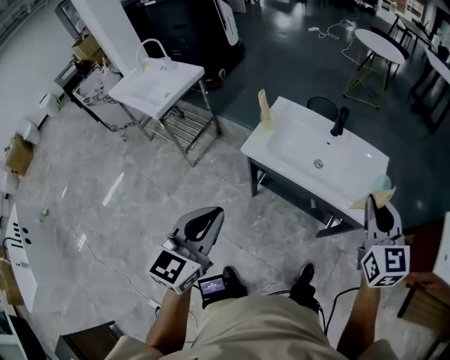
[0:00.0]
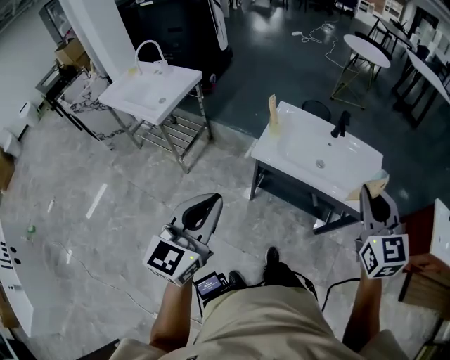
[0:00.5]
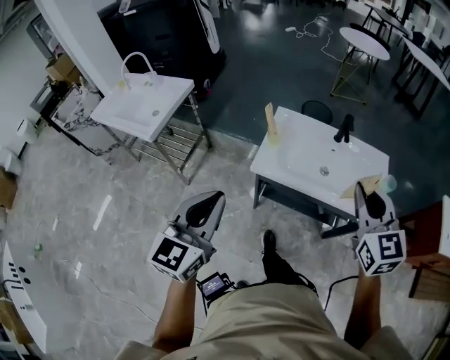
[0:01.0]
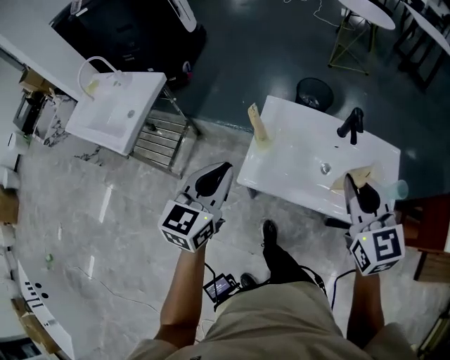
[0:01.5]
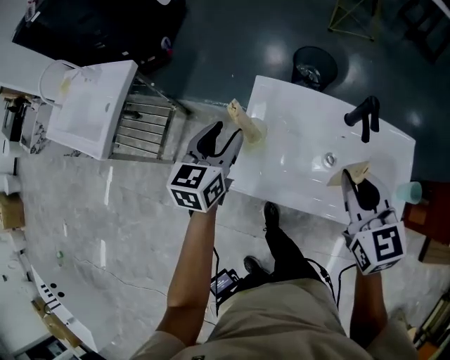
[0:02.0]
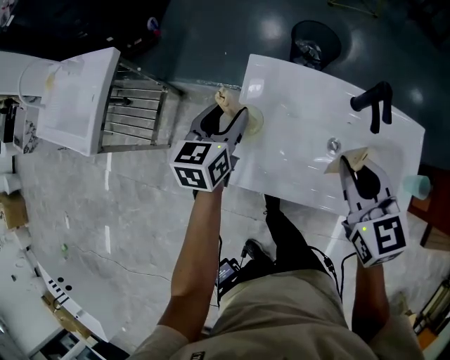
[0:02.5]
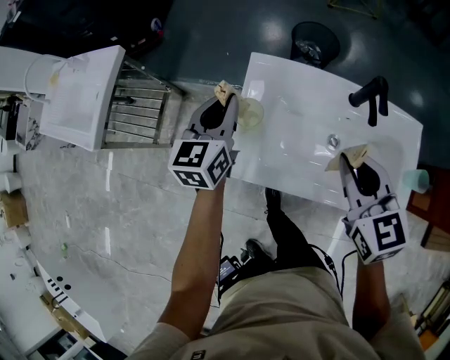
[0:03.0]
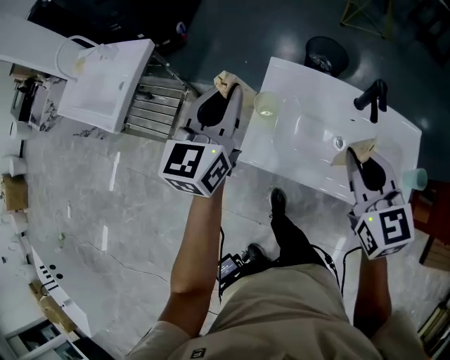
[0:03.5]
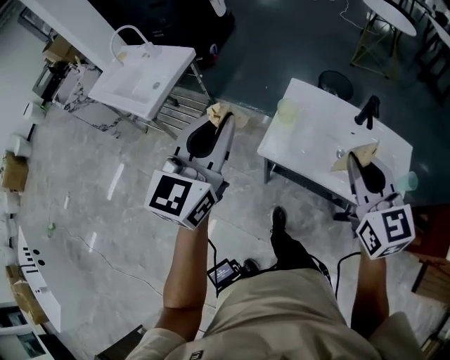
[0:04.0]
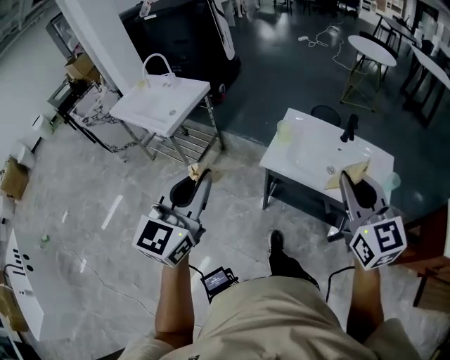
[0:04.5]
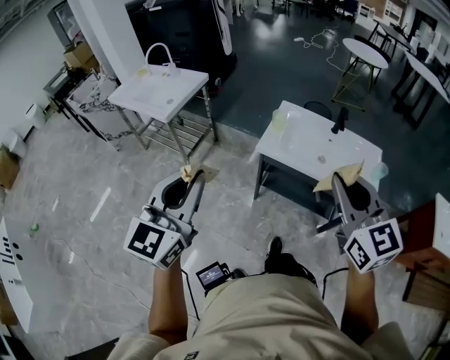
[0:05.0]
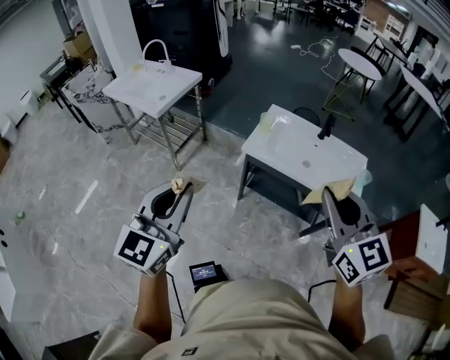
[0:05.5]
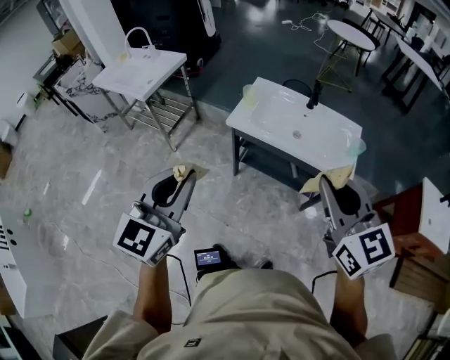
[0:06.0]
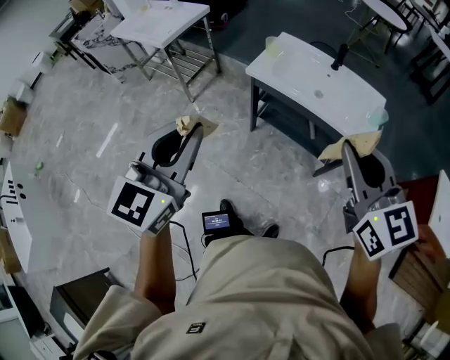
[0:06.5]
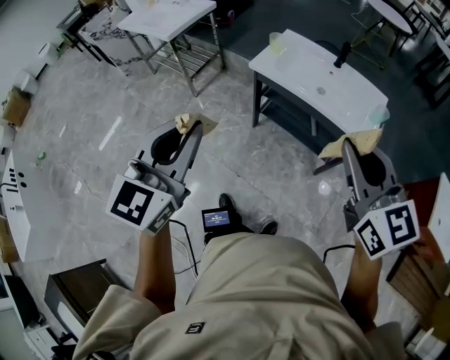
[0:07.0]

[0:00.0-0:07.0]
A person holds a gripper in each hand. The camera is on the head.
0:00.0 to 0:02.0: The left gripper moves forward and downward, roughly 60 cm, and opens its fingers, while the right gripper heads forward, downward and to the left, covering roughly 40 cm.
0:02.0 to 0:03.5: The left gripper travels upward by some 10 cm, and closes its fingers.
0:03.5 to 0:05.0: The two grippers travel together, backward, about 50 cm. The right gripper goes some 25 cm upward.
0:05.0 to 0:07.0: Both grippers move backward and to the right, approximately 20 cm.

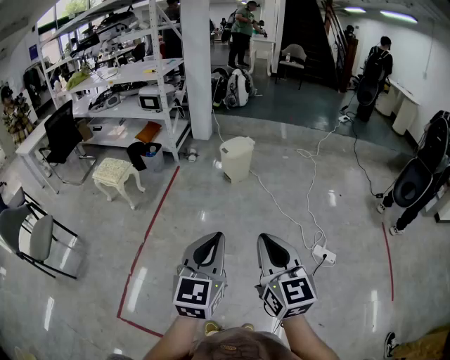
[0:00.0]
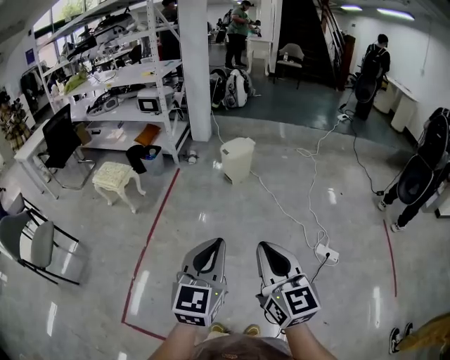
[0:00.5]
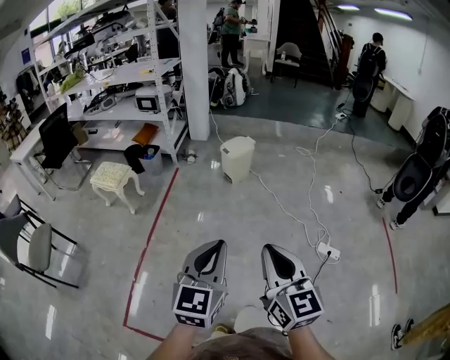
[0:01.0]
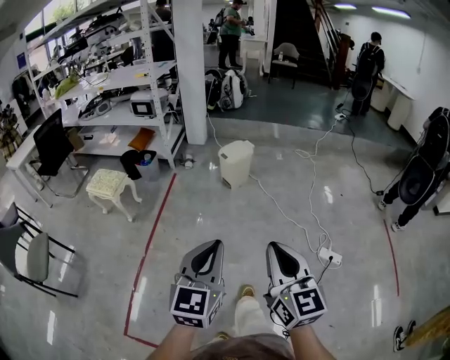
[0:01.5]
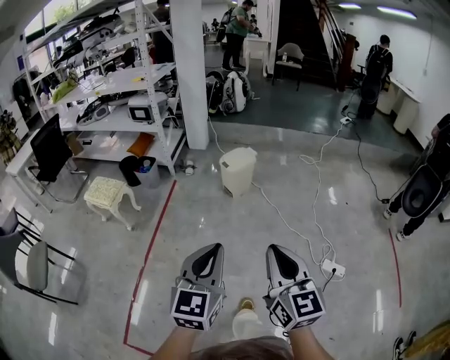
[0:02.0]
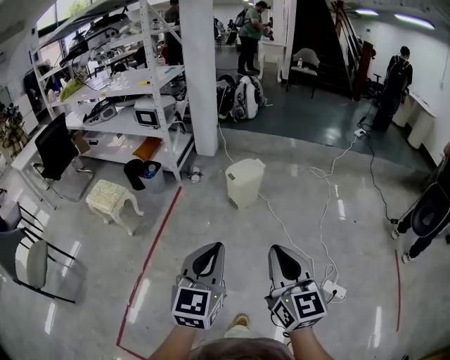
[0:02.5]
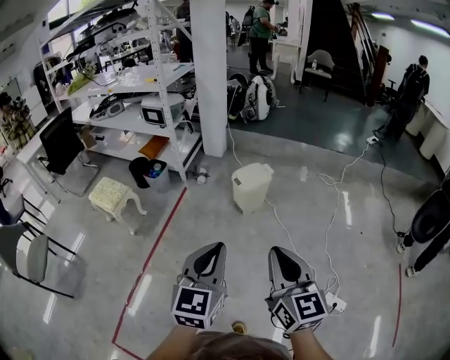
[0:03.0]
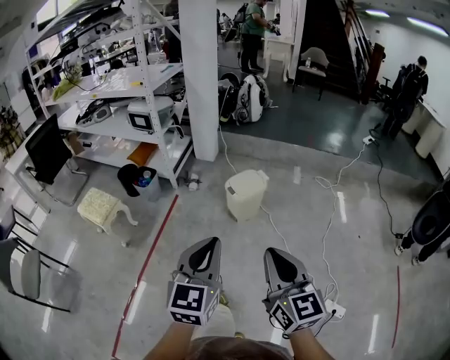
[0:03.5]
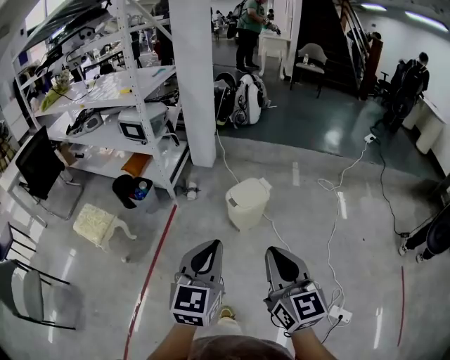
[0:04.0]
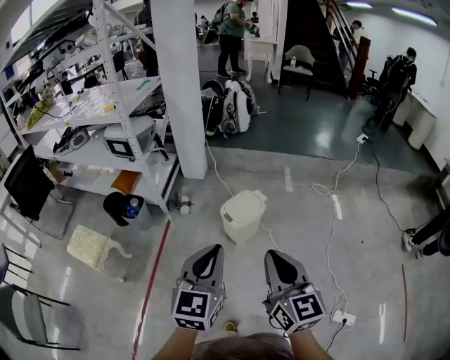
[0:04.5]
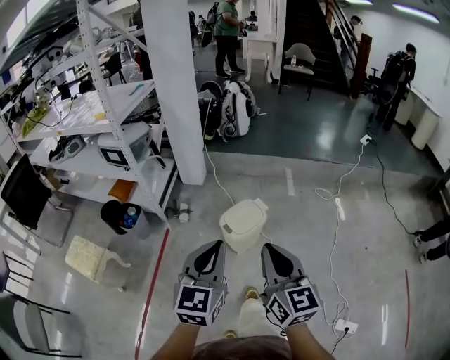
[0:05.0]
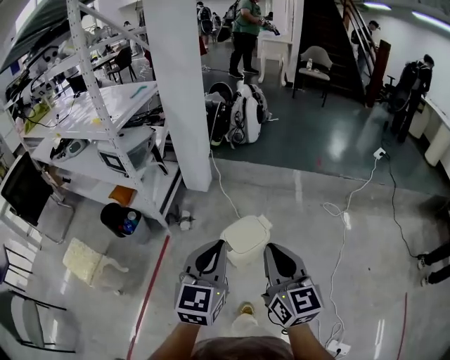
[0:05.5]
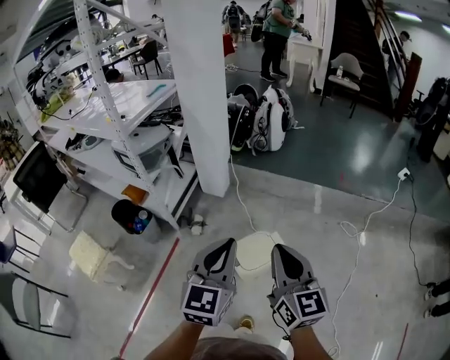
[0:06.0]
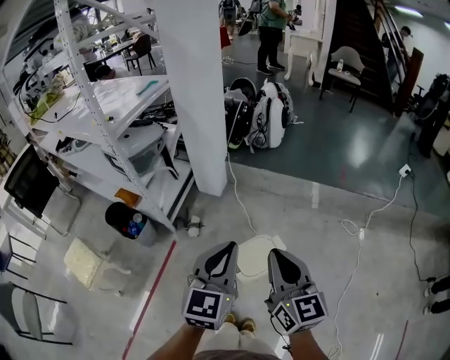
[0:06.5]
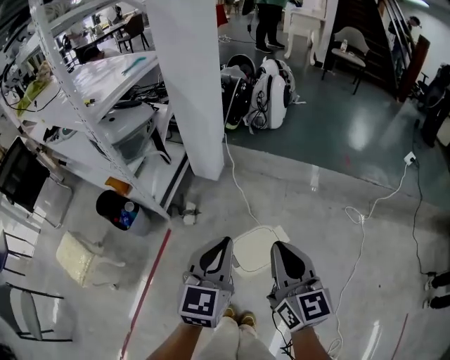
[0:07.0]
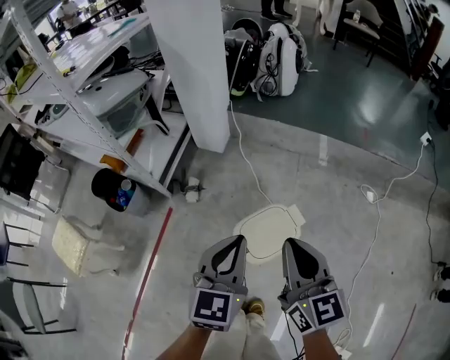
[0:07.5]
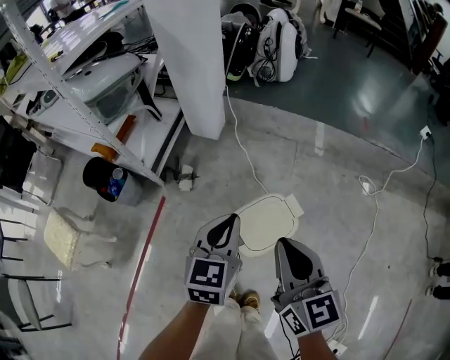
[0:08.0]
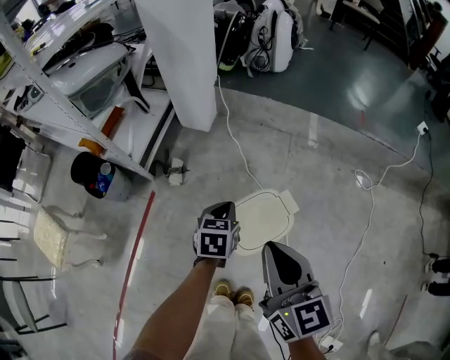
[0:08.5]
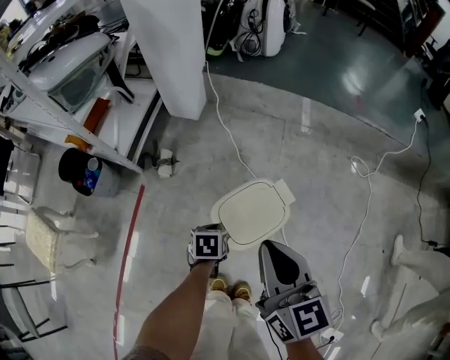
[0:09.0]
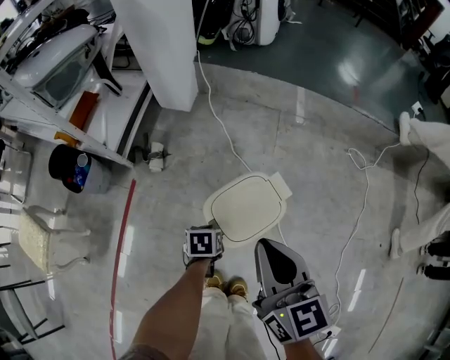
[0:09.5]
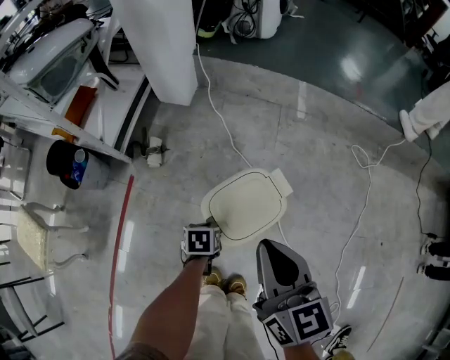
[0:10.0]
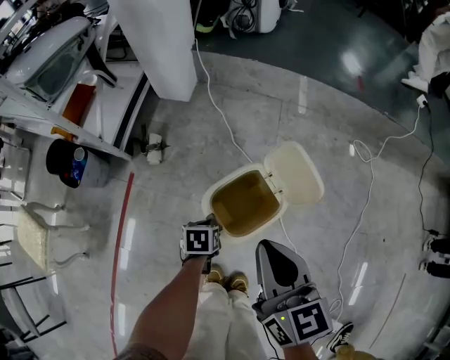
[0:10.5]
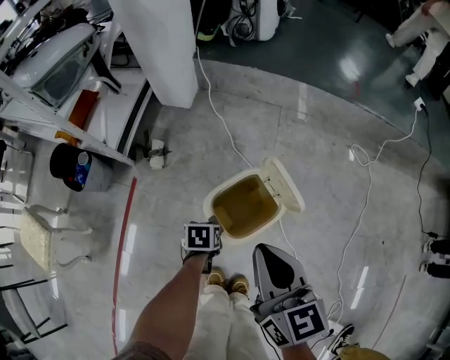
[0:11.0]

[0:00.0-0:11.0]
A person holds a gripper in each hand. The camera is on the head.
0:00.0 to 0:02.0: The grippers both shift forward by some 15 cm.
0:02.0 to 0:03.5: The grippers both shift forward by about 30 cm.
0:03.5 to 0:05.5: The two grippers go approximately 40 cm forward.
0:05.5 to 0:07.5: The right gripper heads forward and downward, covering about 30 cm. Meanwhile the left gripper travels downward and forward by approximately 30 cm.
0:07.5 to 0:09.0: The left gripper is displaced downward by some 35 cm, and tips its fingers downward by approximately 50 degrees. The right gripper heads downward, covering roughly 10 cm.
0:09.0 to 0:11.0: The left gripper shifts approximately 5 cm downward.

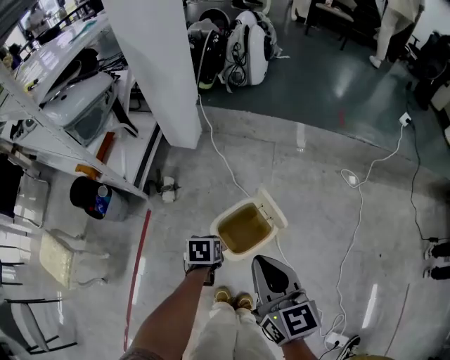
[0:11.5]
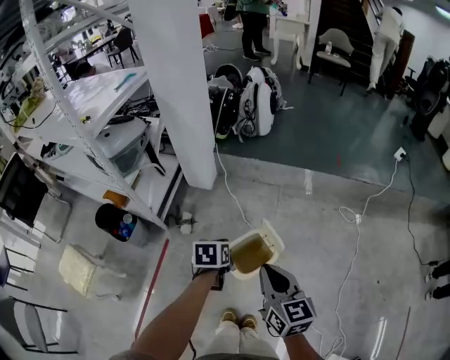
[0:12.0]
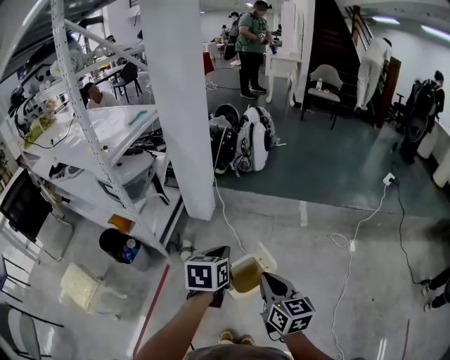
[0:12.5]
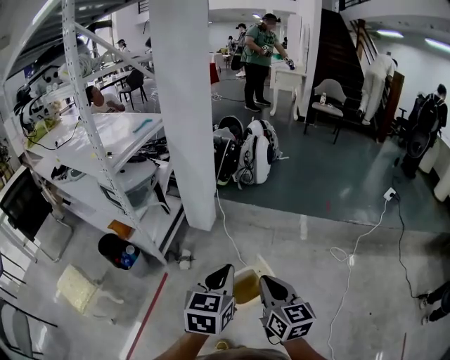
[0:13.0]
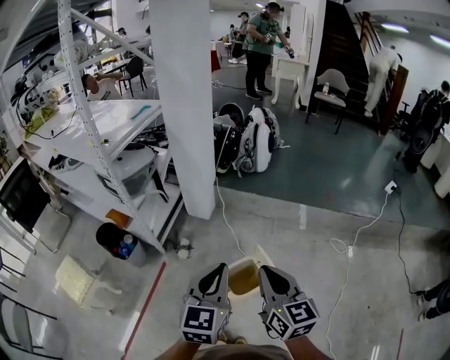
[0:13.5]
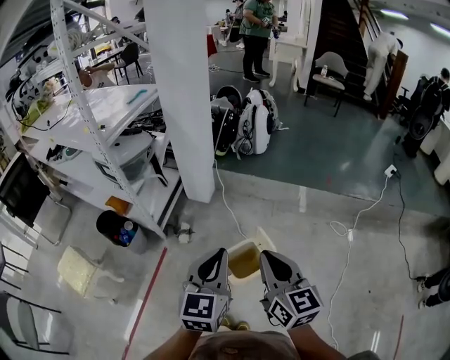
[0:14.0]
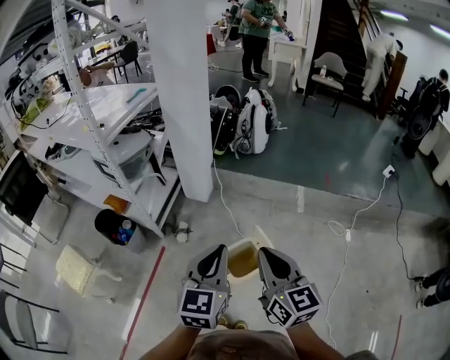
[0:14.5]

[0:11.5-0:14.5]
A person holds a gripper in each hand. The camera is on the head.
0:11.5 to 0:13.0: The right gripper travels upward by about 15 cm; the left gripper is displaced upward by some 50 cm, and points its fingers approximately 40 degrees further upward.
0:13.0 to 0:14.5: There are only small adjustments of the grippers.

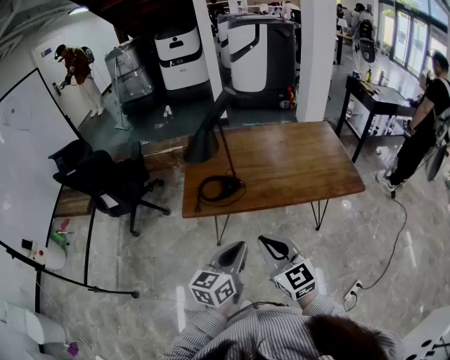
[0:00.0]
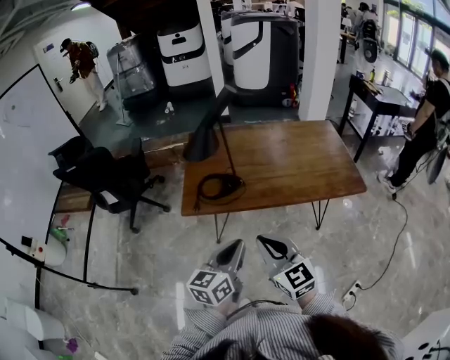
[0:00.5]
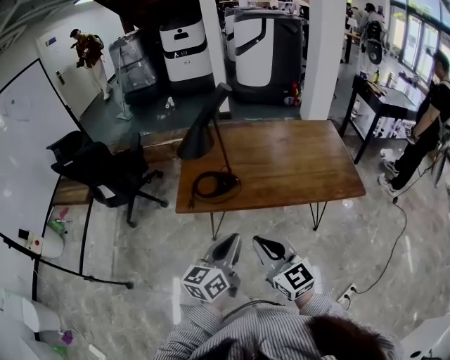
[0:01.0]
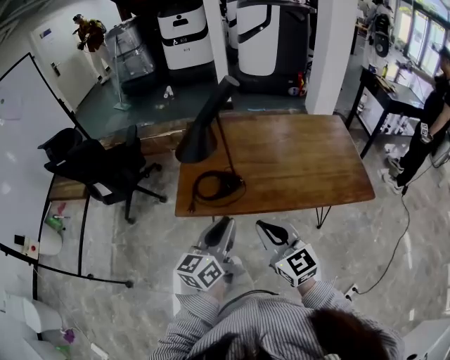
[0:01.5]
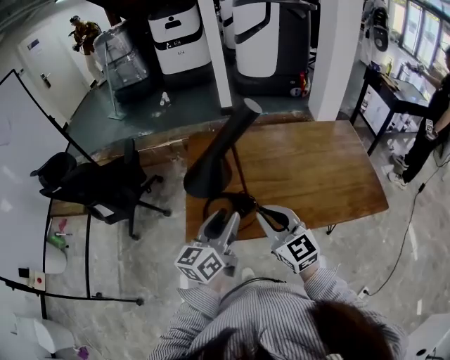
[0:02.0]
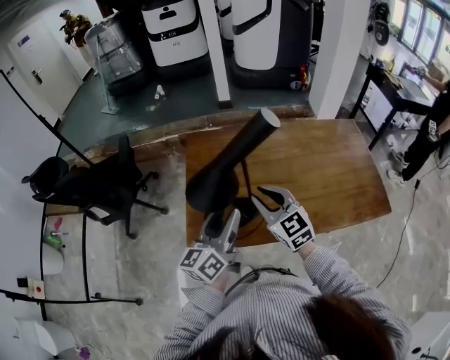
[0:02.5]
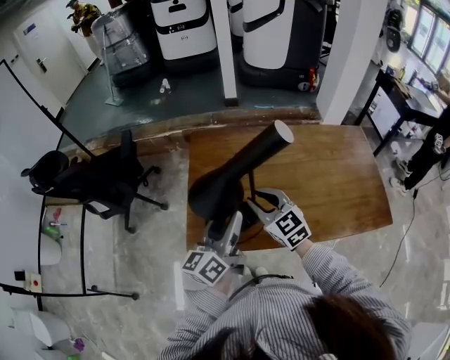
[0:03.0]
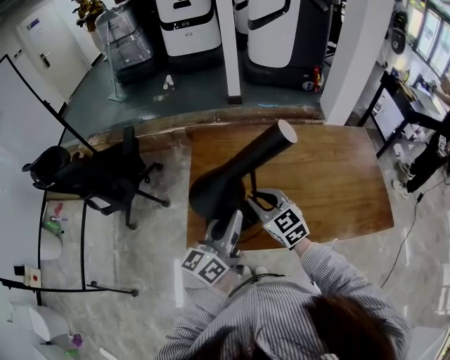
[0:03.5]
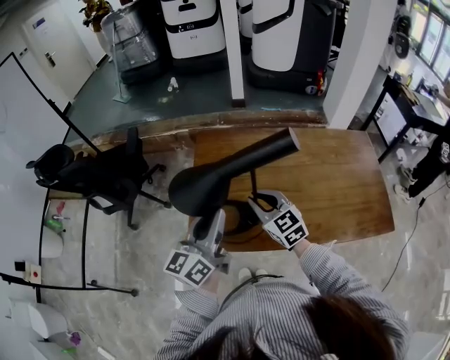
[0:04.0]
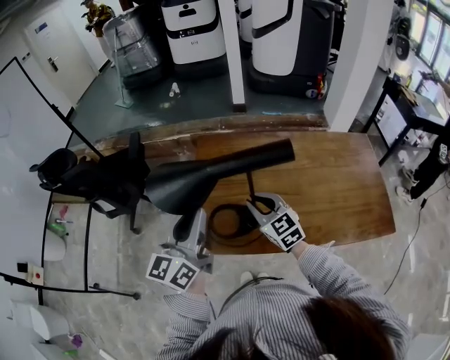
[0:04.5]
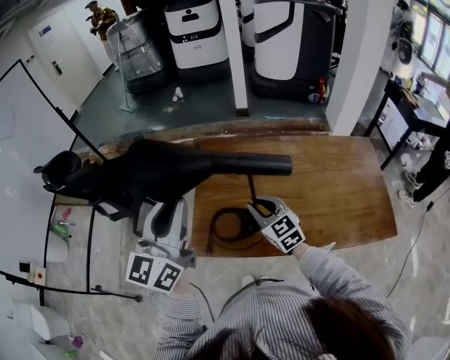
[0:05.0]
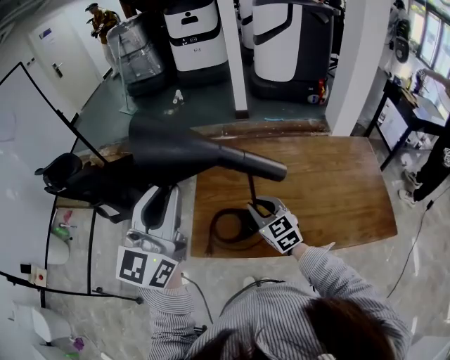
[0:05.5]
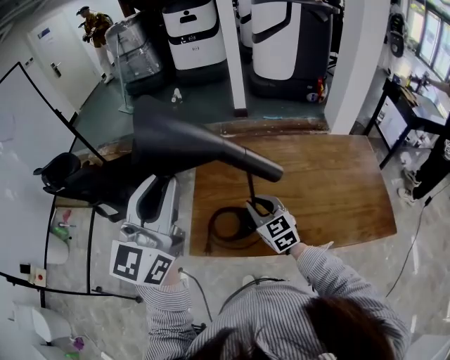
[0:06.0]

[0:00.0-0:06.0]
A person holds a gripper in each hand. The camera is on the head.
0:00.0 to 0:02.0: The two grippers go some 25 cm forward. The left gripper opens up.
0:02.0 to 0:04.0: The left gripper is displaced forward by some 5 cm, and closes up; the right gripper shifts roughly 15 cm forward and downward.
0:04.0 to 0:06.0: The left gripper heads upward, covering approximately 20 cm, and changes its angle by about 30 degrees.
